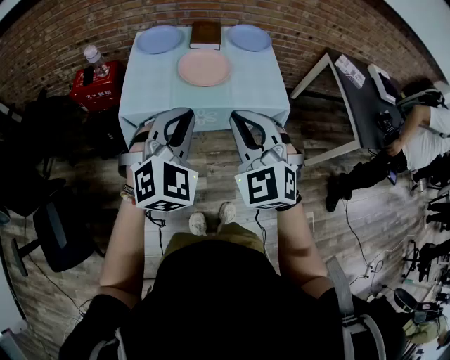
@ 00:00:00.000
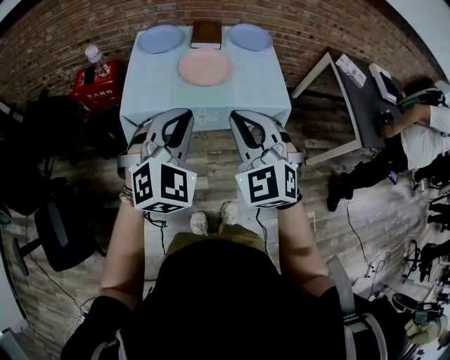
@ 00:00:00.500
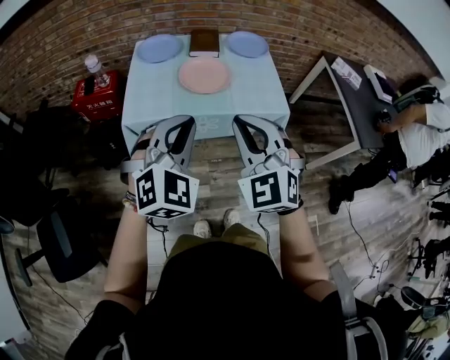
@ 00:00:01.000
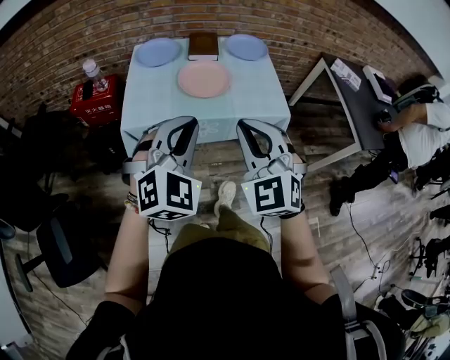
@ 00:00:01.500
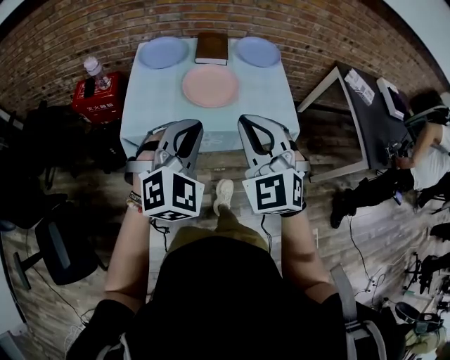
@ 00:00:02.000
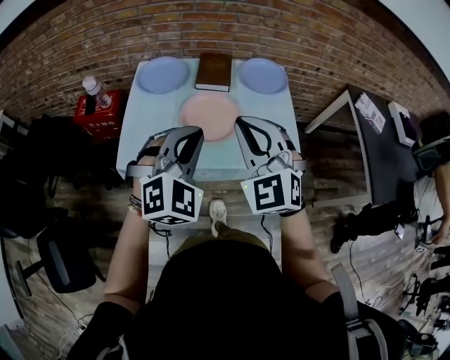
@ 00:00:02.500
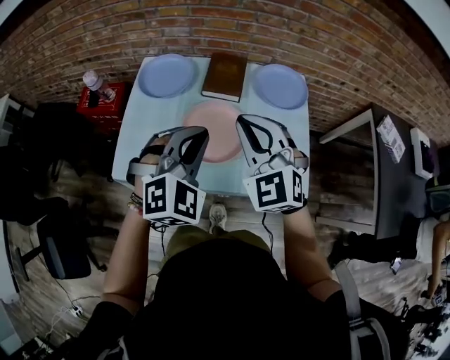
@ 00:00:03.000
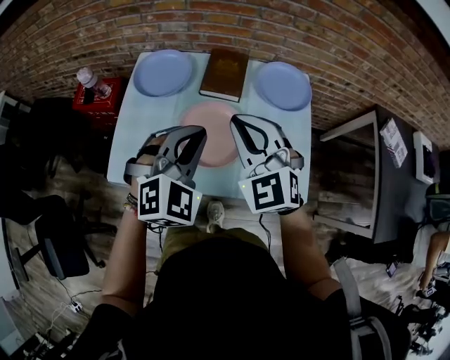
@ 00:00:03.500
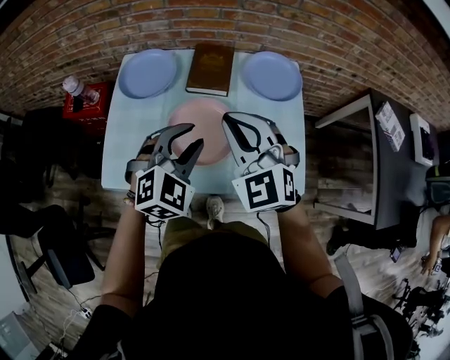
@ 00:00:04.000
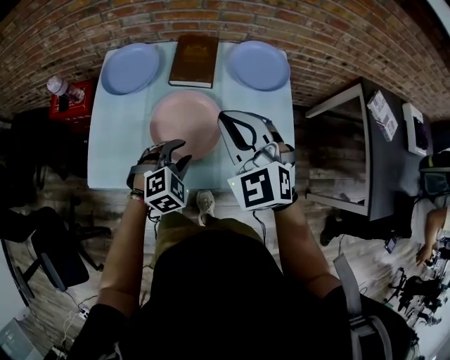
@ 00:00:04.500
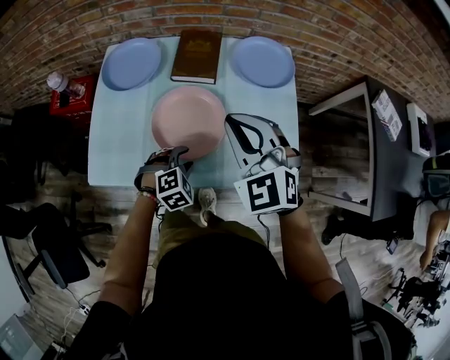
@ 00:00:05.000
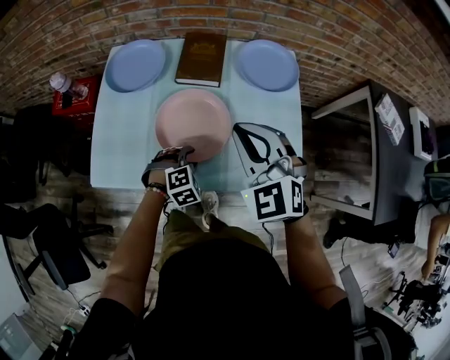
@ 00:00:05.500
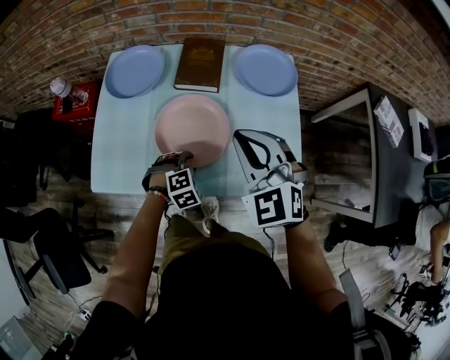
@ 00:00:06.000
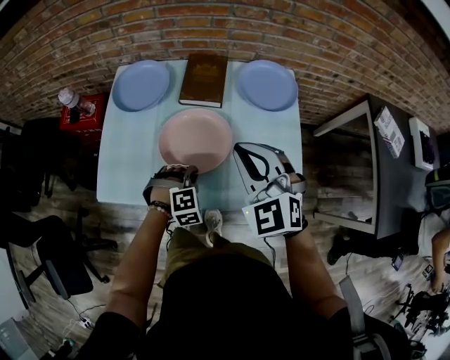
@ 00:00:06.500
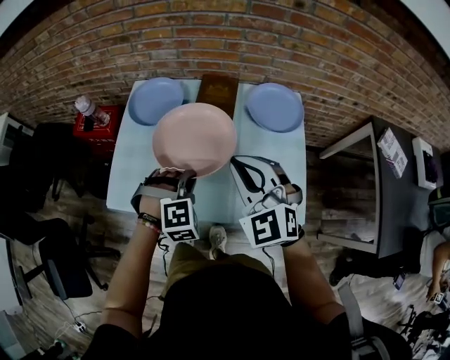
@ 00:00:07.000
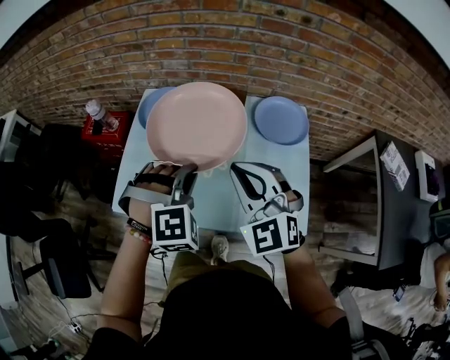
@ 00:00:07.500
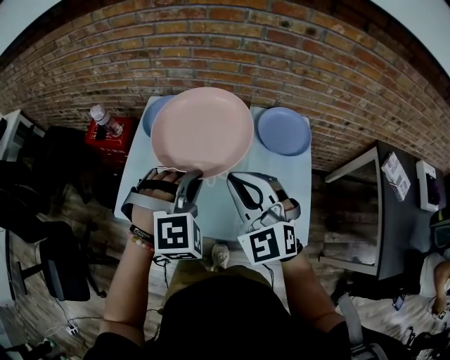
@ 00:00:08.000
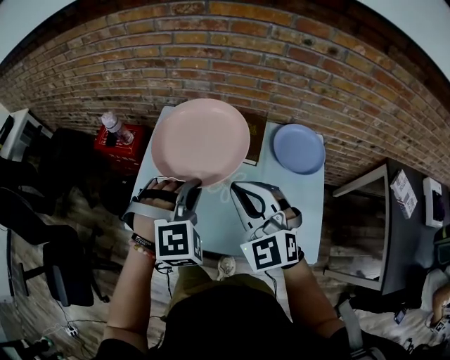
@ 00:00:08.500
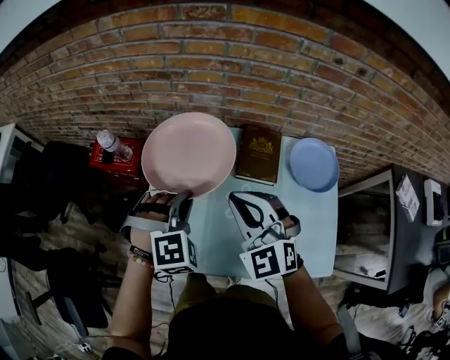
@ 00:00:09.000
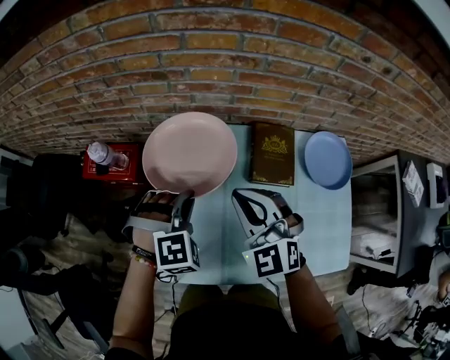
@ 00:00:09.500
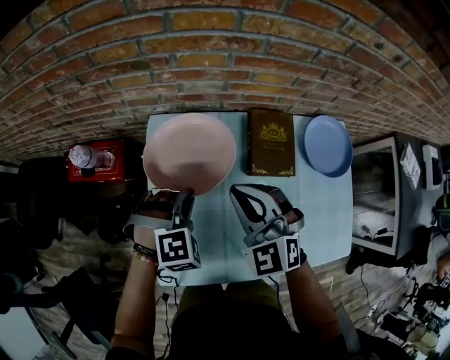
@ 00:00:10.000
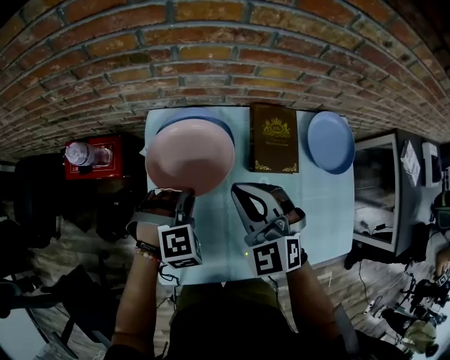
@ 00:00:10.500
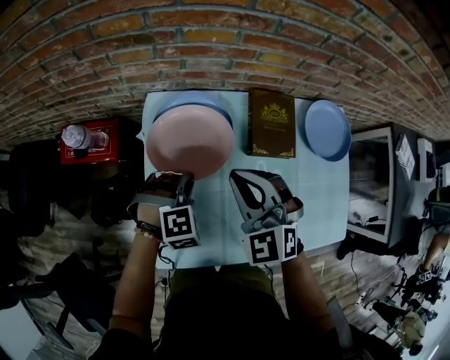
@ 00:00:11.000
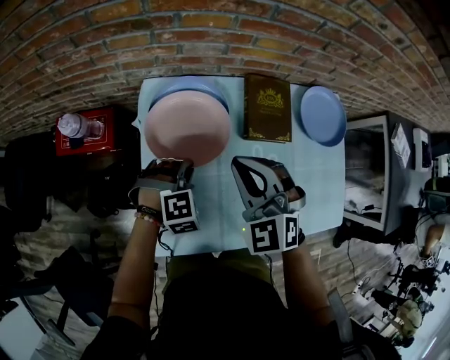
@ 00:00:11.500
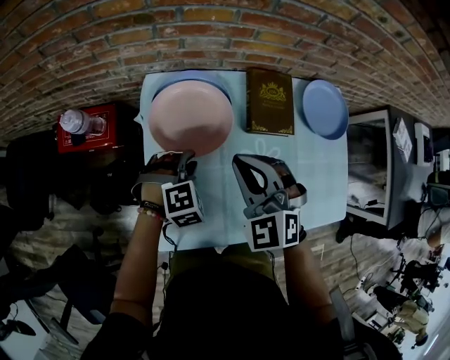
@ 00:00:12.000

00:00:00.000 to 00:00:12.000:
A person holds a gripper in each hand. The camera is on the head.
00:00:00.000 to 00:00:02.000: Both grippers travel together forward, roughly 10 cm.
00:00:02.000 to 00:00:04.000: Both grippers move forward, approximately 35 cm. The left gripper opens its fingers.
00:00:04.000 to 00:00:06.000: The left gripper goes roughly 25 cm downward, and angles its fingers downward, by some 30 degrees. Meanwhile the right gripper goes some 5 cm to the right.
00:00:06.000 to 00:00:08.000: The right gripper moves upward and to the left, roughly 10 cm, while the left gripper moves upward, about 30 cm, rotates some 30 degrees, and closes its fingers.
00:00:08.000 to 00:00:10.000: Both grippers move forward, to the left and downward, roughly 35 cm.
00:00:10.000 to 00:00:12.000: The left gripper shifts some 5 cm downward.

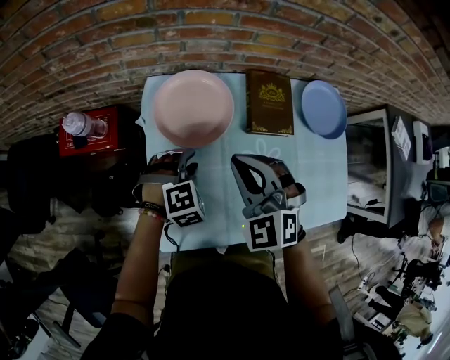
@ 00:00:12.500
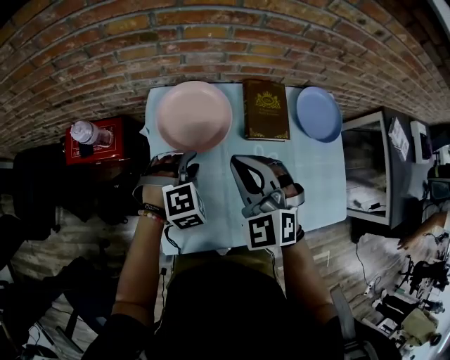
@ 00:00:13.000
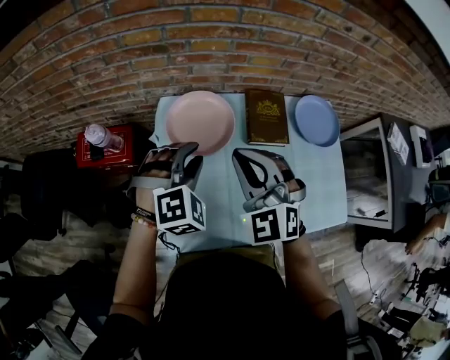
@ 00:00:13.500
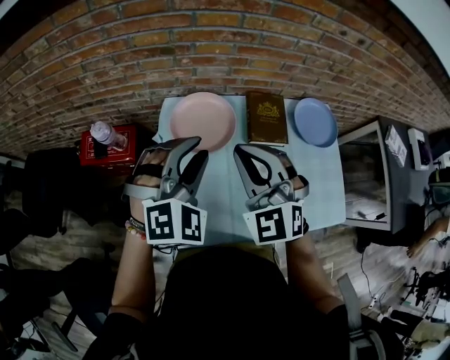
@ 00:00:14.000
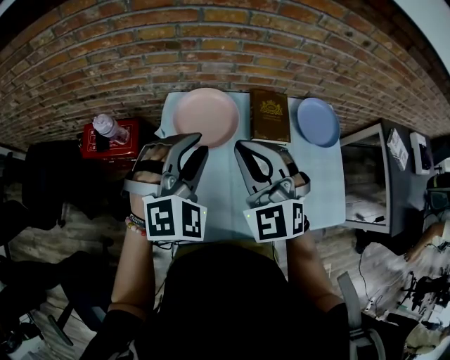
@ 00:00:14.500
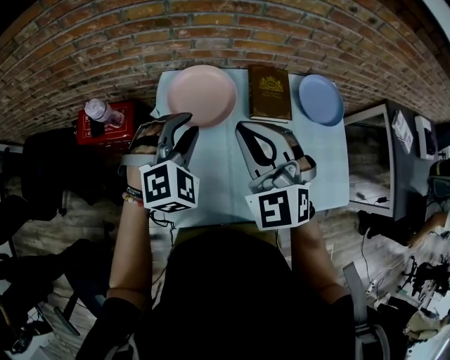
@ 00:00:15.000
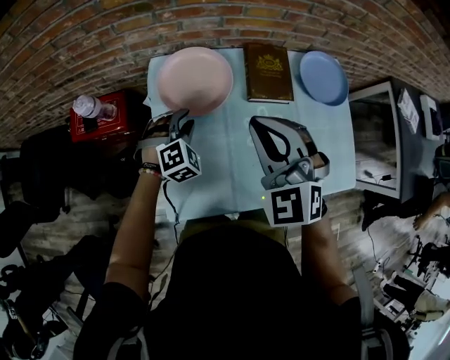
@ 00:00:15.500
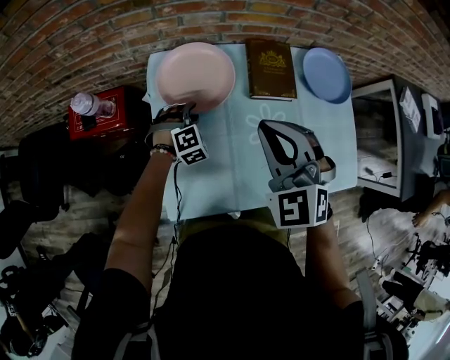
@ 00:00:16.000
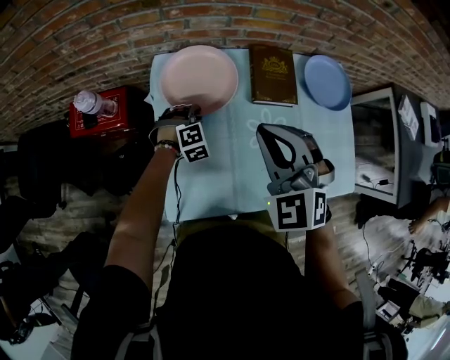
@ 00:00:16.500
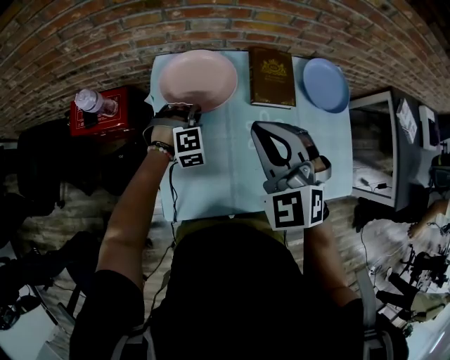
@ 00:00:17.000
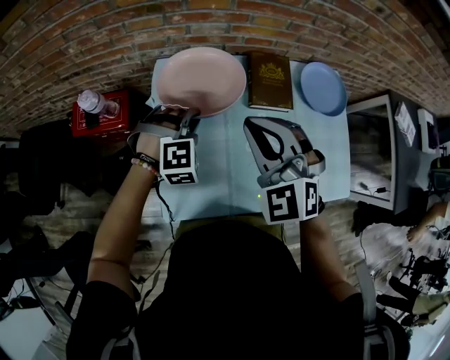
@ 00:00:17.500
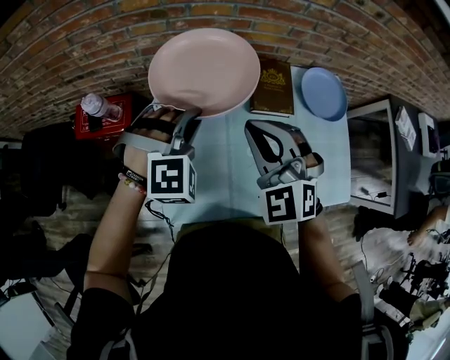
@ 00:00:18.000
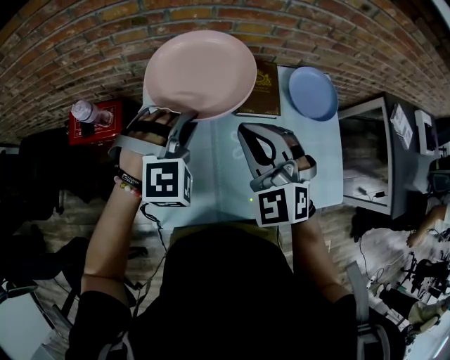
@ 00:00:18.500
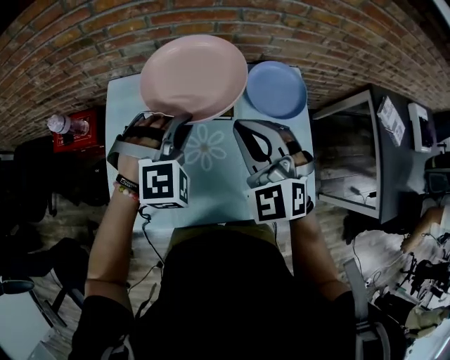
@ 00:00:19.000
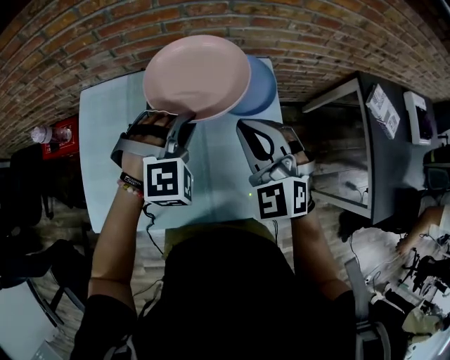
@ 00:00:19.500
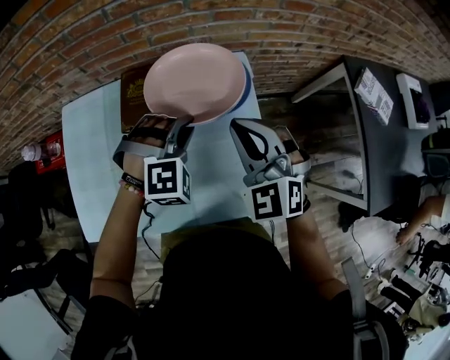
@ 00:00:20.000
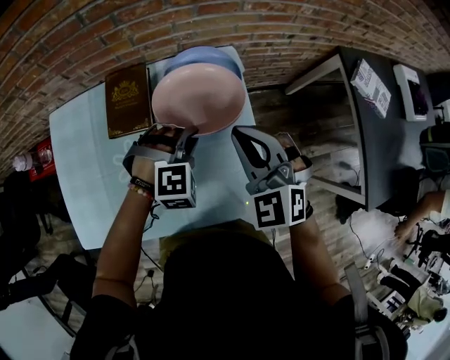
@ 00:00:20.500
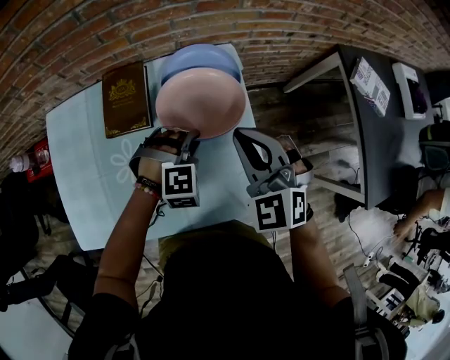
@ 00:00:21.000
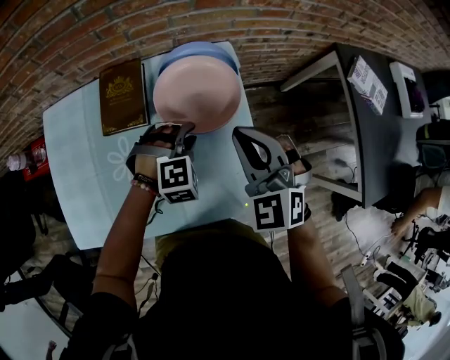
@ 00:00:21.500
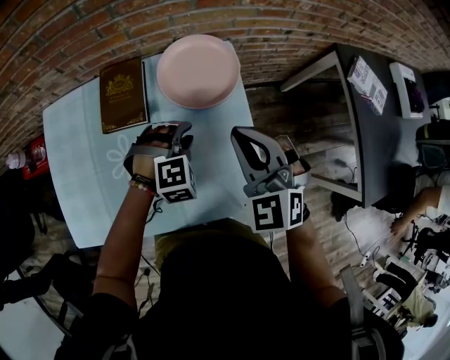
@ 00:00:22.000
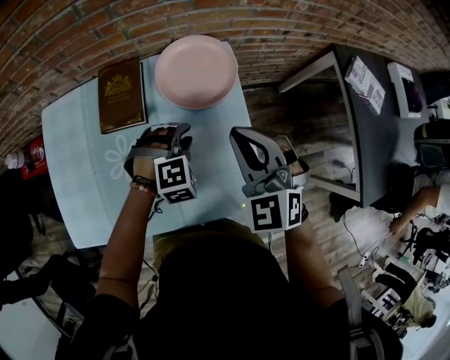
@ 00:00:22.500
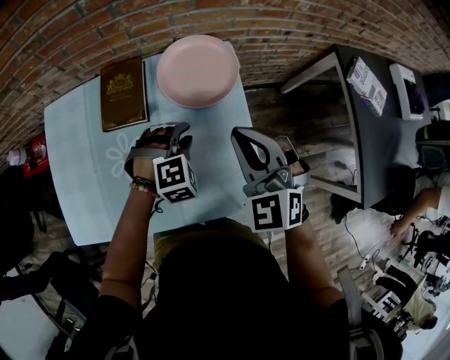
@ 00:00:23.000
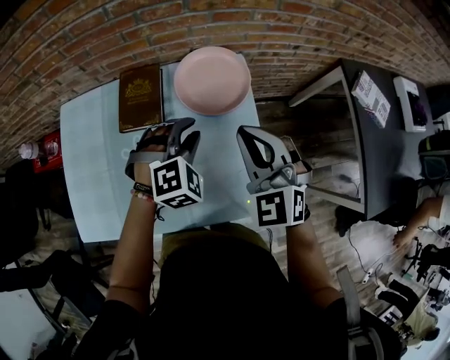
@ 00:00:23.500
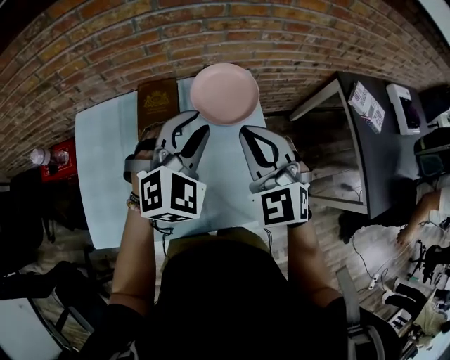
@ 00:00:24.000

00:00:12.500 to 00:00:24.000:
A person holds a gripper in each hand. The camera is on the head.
00:00:12.500 to 00:00:14.500: The right gripper shifts approximately 15 cm upward; the left gripper shifts about 25 cm upward, and tilts its fingers some 30 degrees upward.
00:00:14.500 to 00:00:16.500: The right gripper travels downward and to the right by some 10 cm, while the left gripper moves downward, some 30 cm, and swivels about 30 degrees.
00:00:16.500 to 00:00:18.500: The left gripper heads upward, covering roughly 25 cm, and changes its angle by some 20 degrees.
00:00:18.500 to 00:00:20.000: The two grippers travel together, to the right, about 40 cm.
00:00:20.000 to 00:00:22.000: The left gripper moves downward, approximately 10 cm.
00:00:22.000 to 00:00:24.000: The right gripper goes roughly 10 cm upward and to the left. The left gripper heads upward, covering approximately 25 cm, and rotates about 40 degrees.

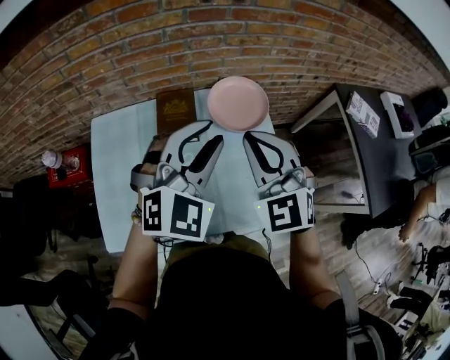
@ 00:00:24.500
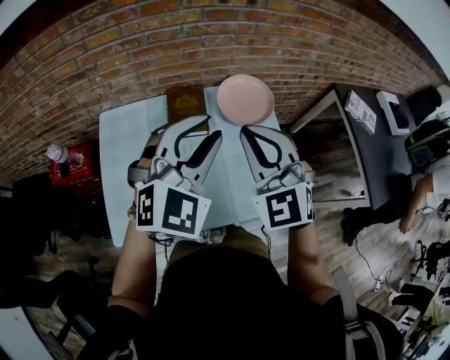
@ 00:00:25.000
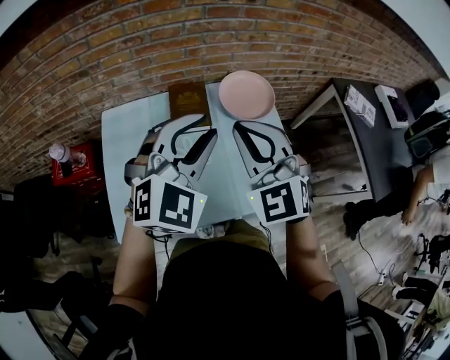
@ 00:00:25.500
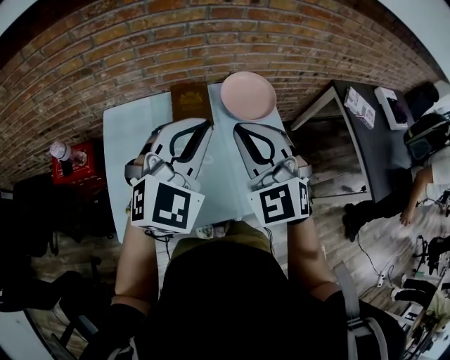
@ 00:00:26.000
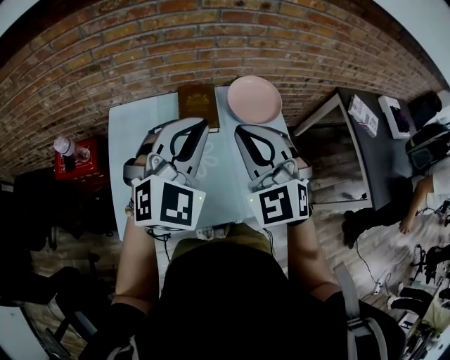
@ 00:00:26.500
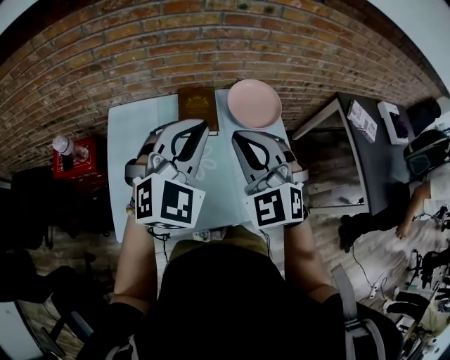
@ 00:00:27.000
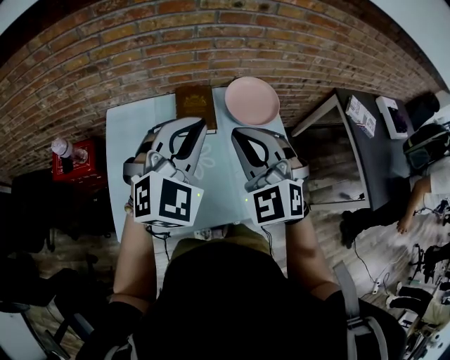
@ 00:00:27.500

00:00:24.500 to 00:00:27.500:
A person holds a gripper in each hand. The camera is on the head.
00:00:24.500 to 00:00:26.000: Both grippers move to the left and backward, about 10 cm. The left gripper closes its fingers.
00:00:26.000 to 00:00:27.500: The grippers stay close to where they were, moving slightly.
